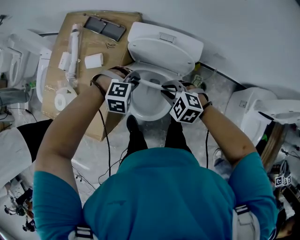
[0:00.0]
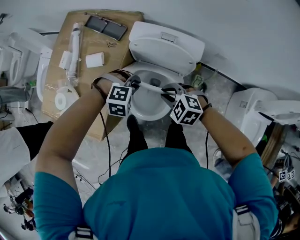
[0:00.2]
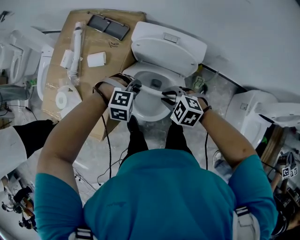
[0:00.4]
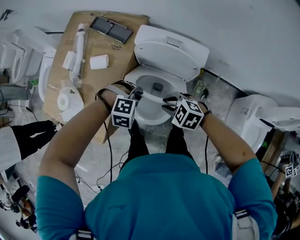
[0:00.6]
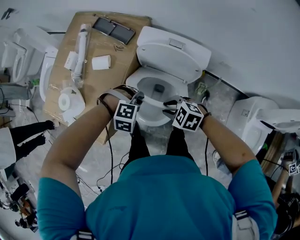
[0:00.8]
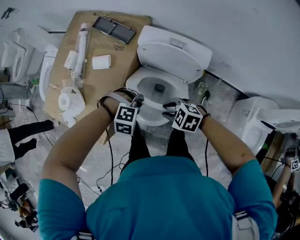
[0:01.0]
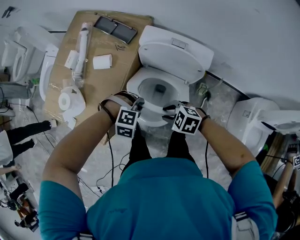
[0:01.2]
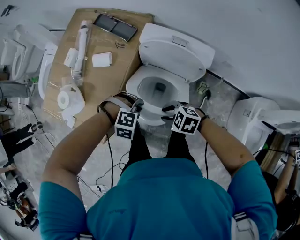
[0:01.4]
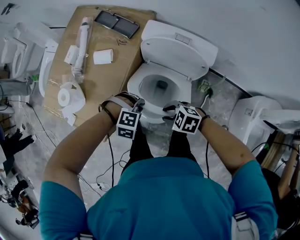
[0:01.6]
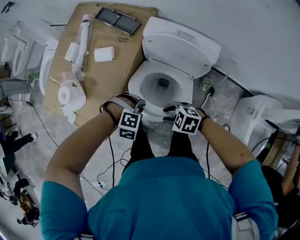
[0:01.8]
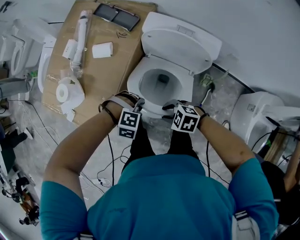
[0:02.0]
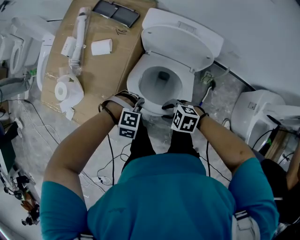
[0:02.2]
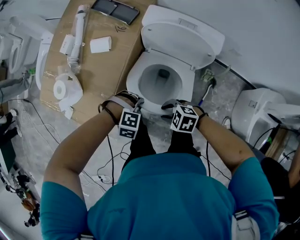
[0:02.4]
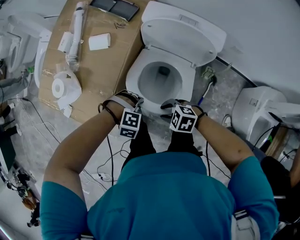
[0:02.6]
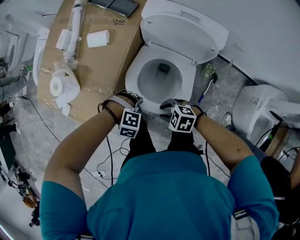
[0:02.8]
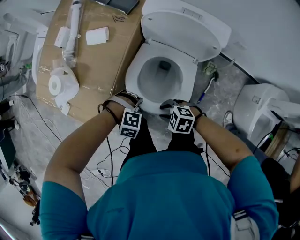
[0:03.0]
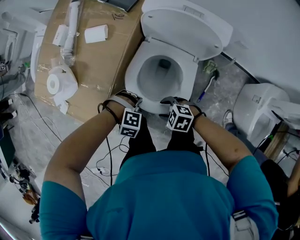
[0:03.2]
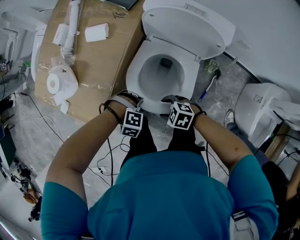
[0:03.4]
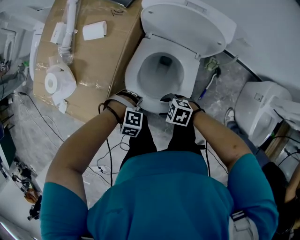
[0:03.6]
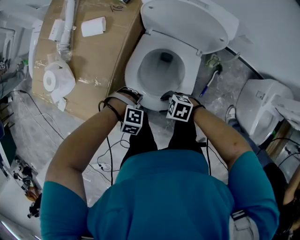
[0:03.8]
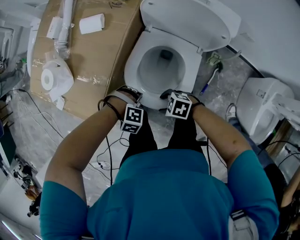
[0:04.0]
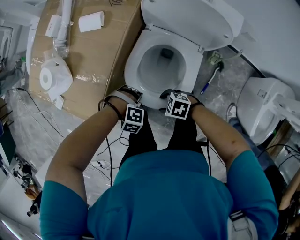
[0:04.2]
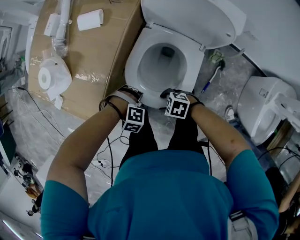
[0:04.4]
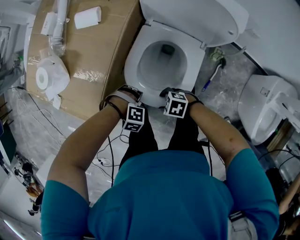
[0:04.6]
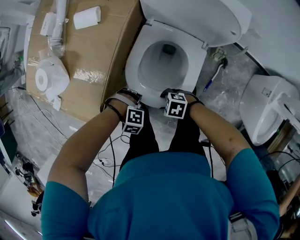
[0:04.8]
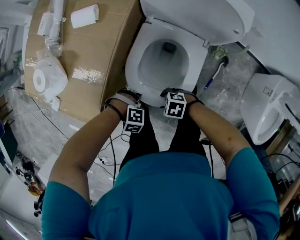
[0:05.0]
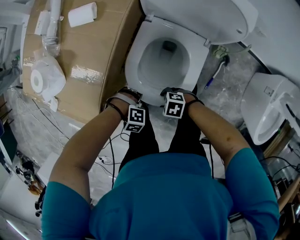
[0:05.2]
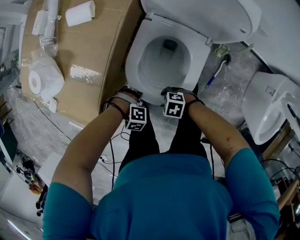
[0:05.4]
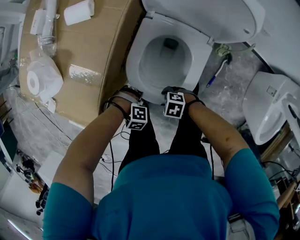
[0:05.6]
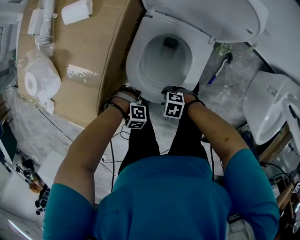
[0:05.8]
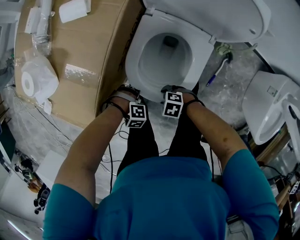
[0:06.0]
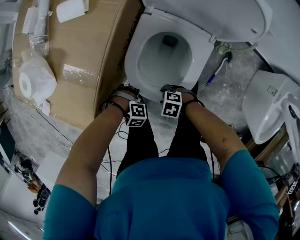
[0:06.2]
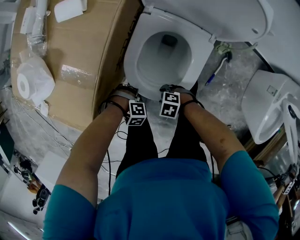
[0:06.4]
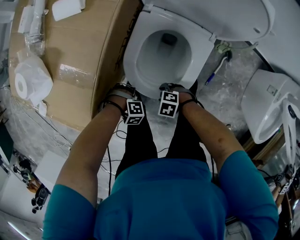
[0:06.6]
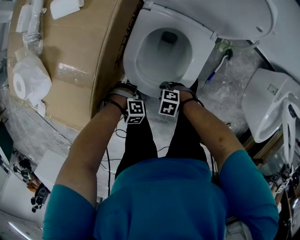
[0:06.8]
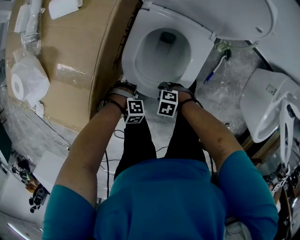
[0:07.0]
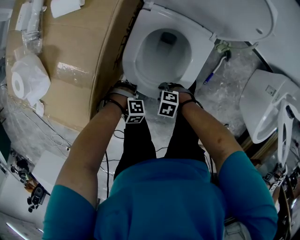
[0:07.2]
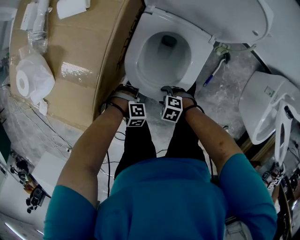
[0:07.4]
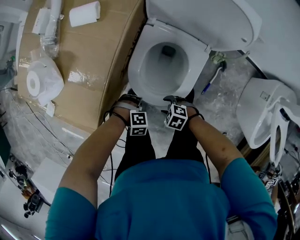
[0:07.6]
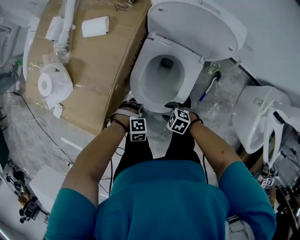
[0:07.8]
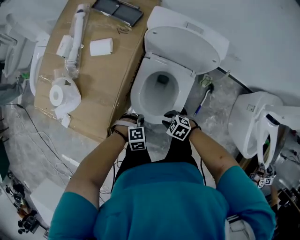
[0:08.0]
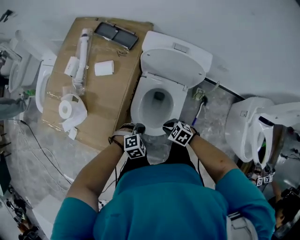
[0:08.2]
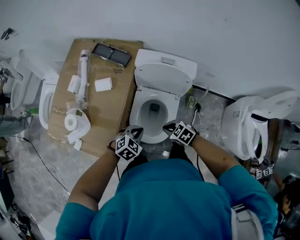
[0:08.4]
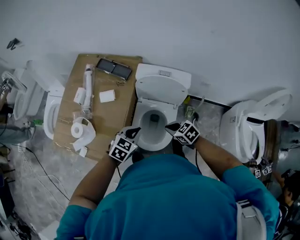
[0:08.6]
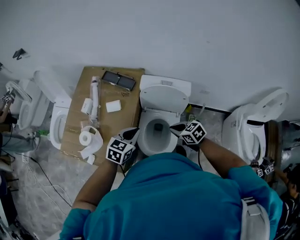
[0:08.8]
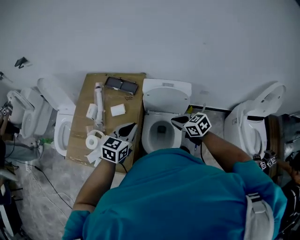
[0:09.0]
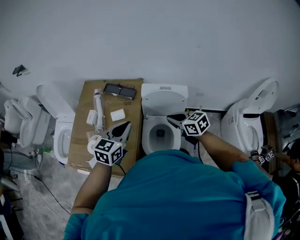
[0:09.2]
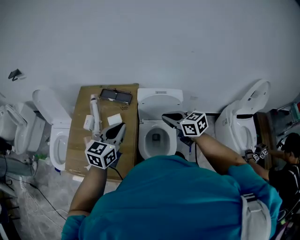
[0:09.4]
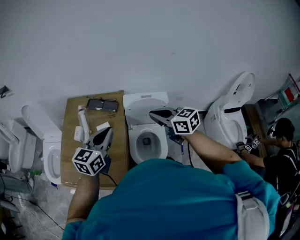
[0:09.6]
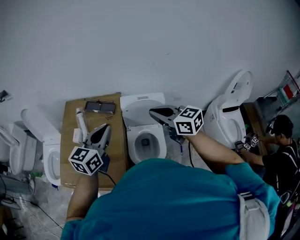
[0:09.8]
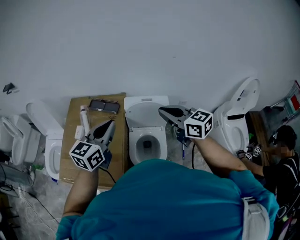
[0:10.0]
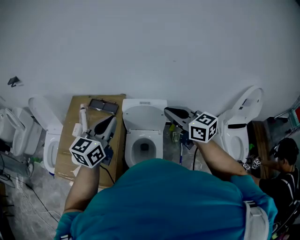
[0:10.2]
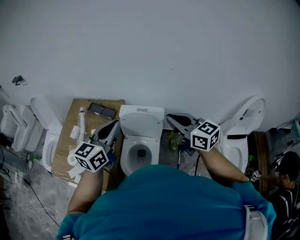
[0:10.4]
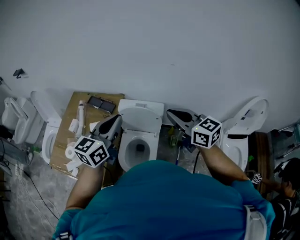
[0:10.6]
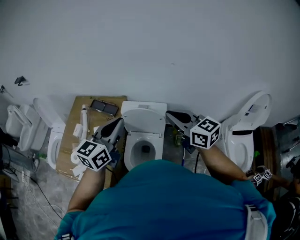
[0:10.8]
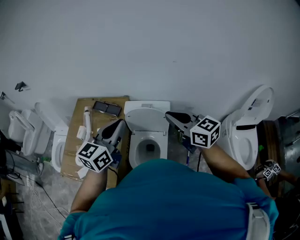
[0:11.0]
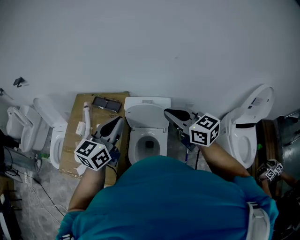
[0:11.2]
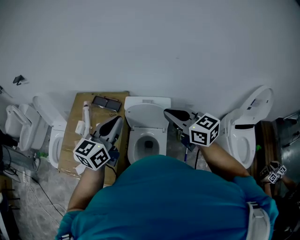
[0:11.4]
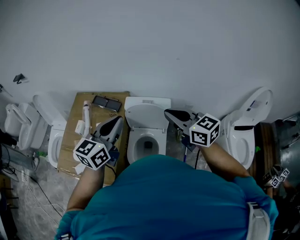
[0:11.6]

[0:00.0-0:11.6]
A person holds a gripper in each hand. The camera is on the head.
0:00.0 to 0:01.4: The right gripper moves roughly 10 cm, and rotates about 20 degrees. The left gripper moves about 10 cm.
0:01.4 to 0:02.8: The right gripper moves about 10 cm. The left gripper heads downward, covering roughly 10 cm.
0:02.8 to 0:04.4: The two grippers go some 10 cm downward. The right gripper opens its fingers.
0:04.4 to 0:05.8: The two grippers go roughly 10 cm downward.
0:05.8 to 0:07.2: The left gripper moves downward, about 5 cm.
0:07.2 to 0:08.8: The two grippers go approximately 50 cm upward. The right gripper swivels approximately 60 degrees, and closes up. Meanwhile the left gripper tips its fingers upward by roughly 50 degrees.
0:08.8 to 0:10.2: Both grippers travel together upward, roughly 30 cm. The left gripper swivels approximately 30 degrees, while the right gripper tilts its fingers about 40 degrees upward.
0:10.2 to 0:11.6: The right gripper goes to the right and returns, approximately 10 cm each way.

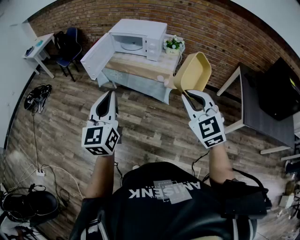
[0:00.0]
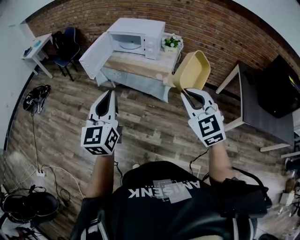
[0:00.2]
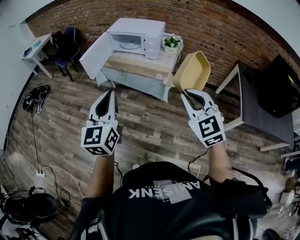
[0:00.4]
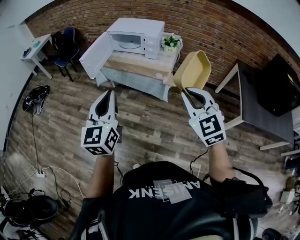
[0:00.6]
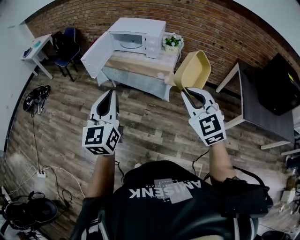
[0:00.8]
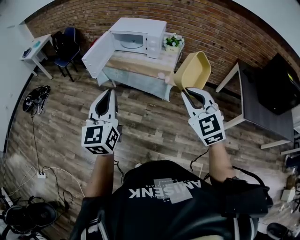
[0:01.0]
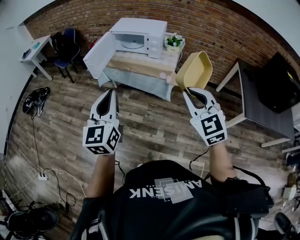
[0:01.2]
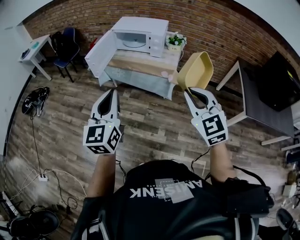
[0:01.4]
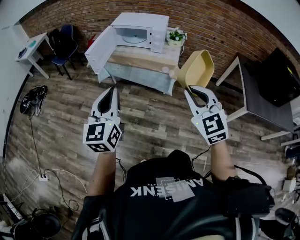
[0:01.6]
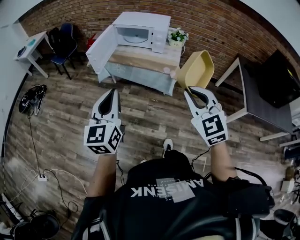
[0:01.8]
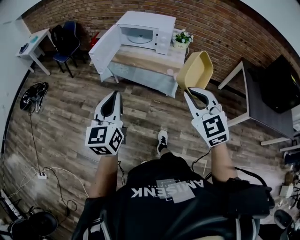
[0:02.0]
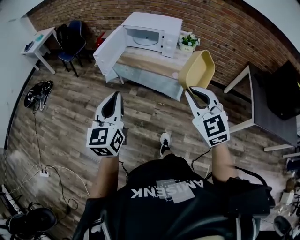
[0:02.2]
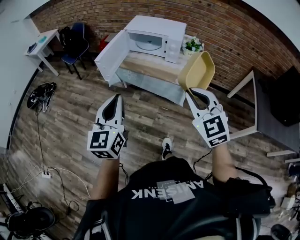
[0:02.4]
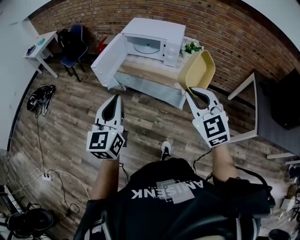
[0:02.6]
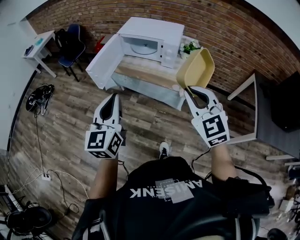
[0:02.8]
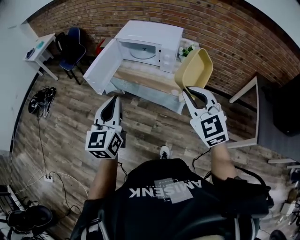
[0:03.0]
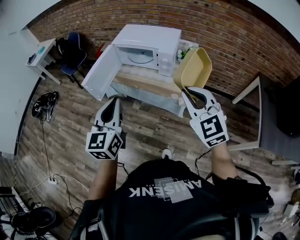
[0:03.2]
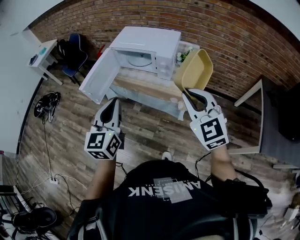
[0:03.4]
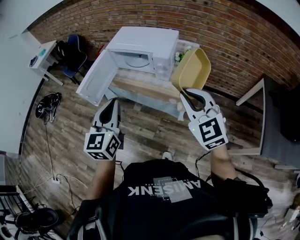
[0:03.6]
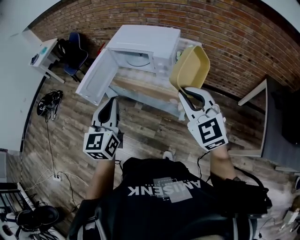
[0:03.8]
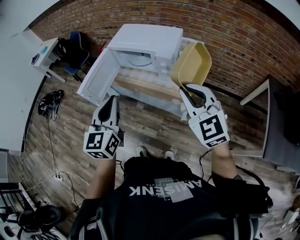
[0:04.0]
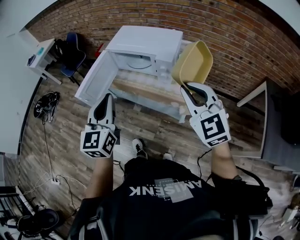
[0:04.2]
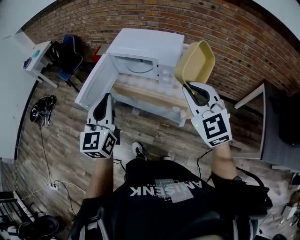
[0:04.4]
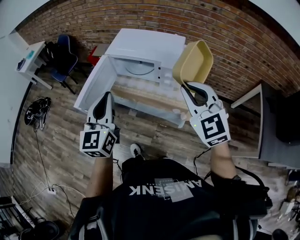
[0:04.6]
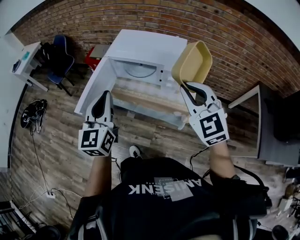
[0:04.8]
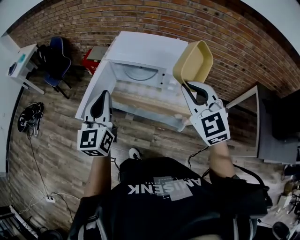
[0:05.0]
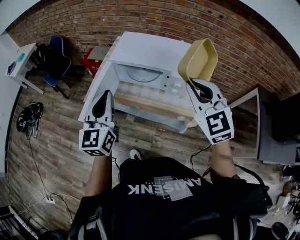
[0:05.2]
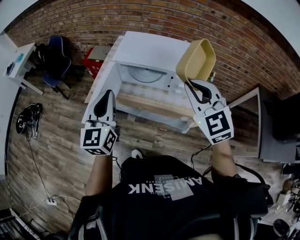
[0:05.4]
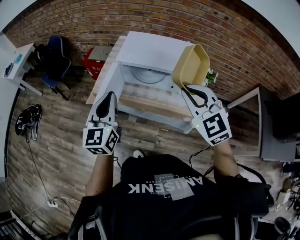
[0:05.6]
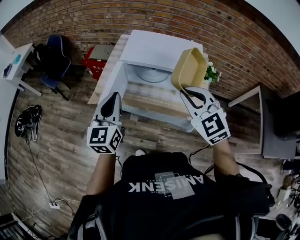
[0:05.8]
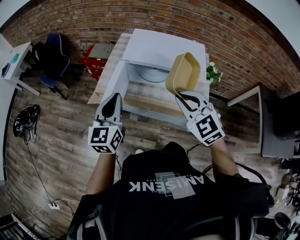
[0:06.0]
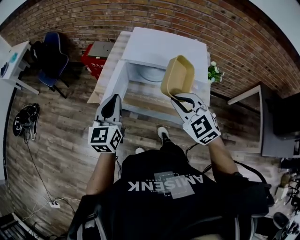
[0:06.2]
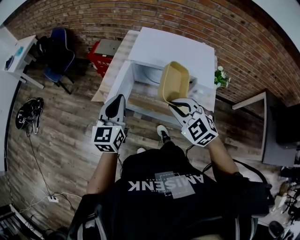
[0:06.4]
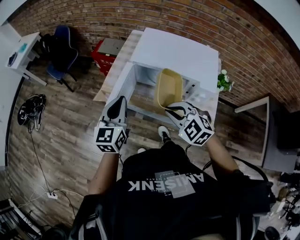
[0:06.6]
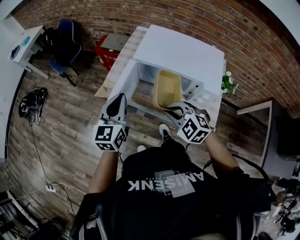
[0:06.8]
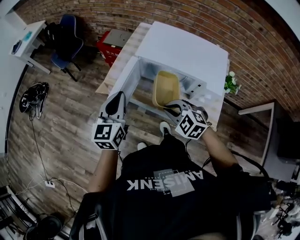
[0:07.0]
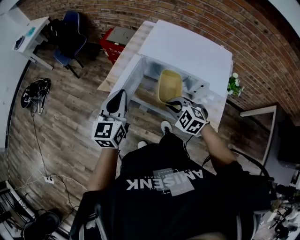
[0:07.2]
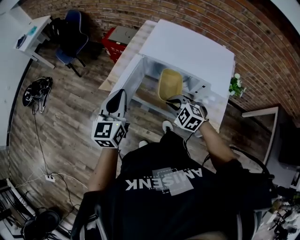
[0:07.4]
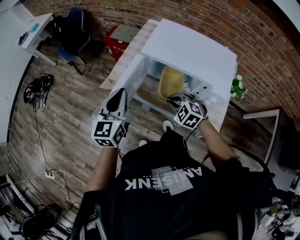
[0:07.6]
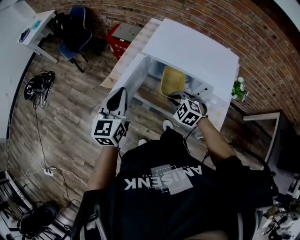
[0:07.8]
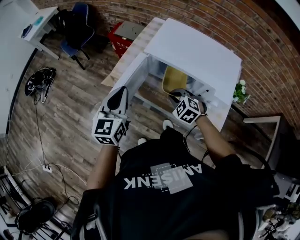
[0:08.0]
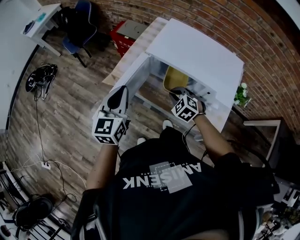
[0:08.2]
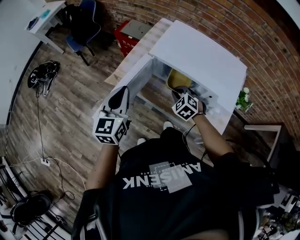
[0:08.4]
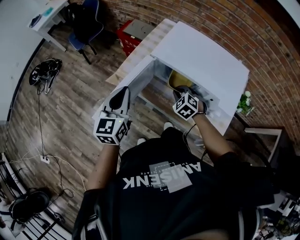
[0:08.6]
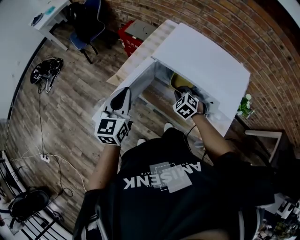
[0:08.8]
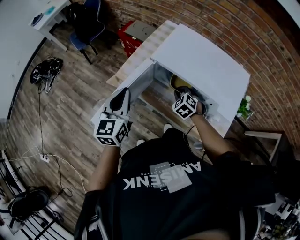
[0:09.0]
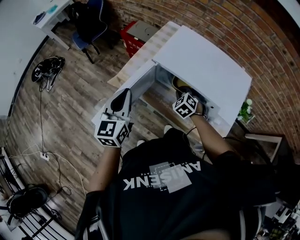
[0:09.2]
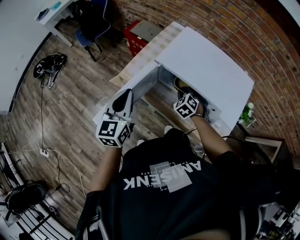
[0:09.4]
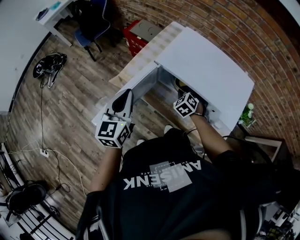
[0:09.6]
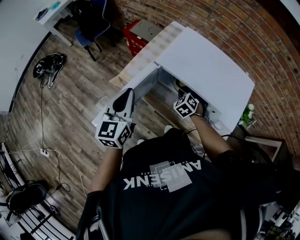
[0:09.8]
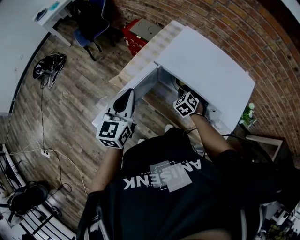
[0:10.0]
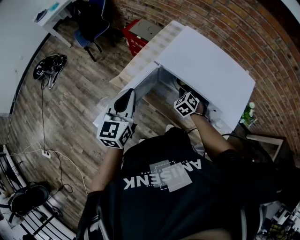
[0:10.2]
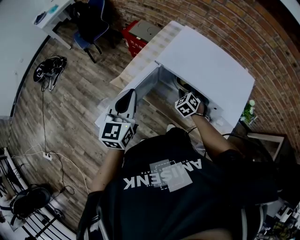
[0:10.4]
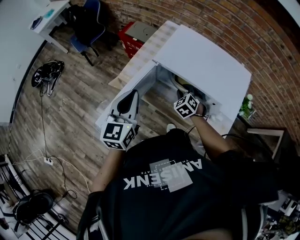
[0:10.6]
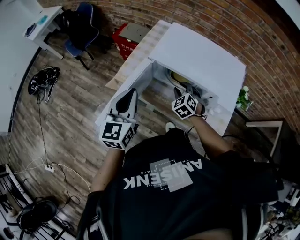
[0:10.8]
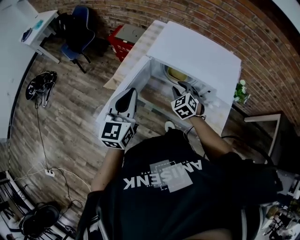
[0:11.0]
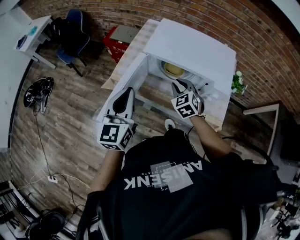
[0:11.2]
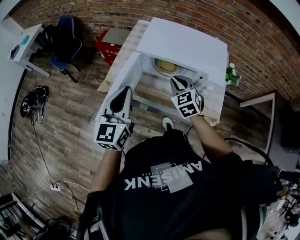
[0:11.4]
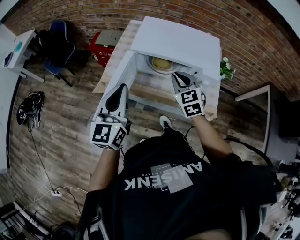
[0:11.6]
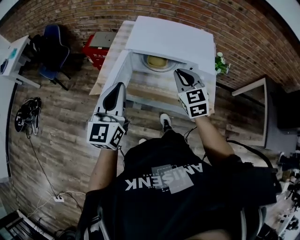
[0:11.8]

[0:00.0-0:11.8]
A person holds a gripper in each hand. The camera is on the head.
0:00.0 to 0:01.4: Both grippers travel together to the left, about 5 cm.
0:01.4 to 0:03.0: The two grippers go about 20 cm forward.
0:03.0 to 0:04.4: The grippers both shift forward by approximately 15 cm.
0:04.4 to 0:06.0: The right gripper is displaced to the left and forward by about 25 cm, while the left gripper heads forward, to the left and downward, covering roughly 25 cm.
0:06.0 to 0:07.4: The right gripper is displaced downward by about 20 cm, and swivels some 30 degrees; the left gripper shifts about 5 cm downward.
0:07.4 to 0:08.8: The right gripper shifts roughly 15 cm forward and downward.
0:08.8 to 0:10.4: The right gripper shifts by some 5 cm, and opens its fingers.
0:10.4 to 0:11.8: The right gripper is displaced upward and backward by about 25 cm, turns by some 40 degrees, and closes its fingers, while the left gripper shifts some 10 cm backward and upward, and changes its angle by approximately 20 degrees.
